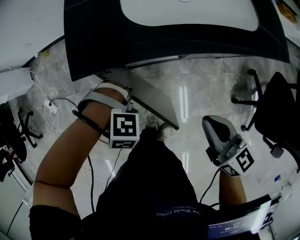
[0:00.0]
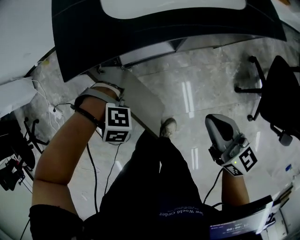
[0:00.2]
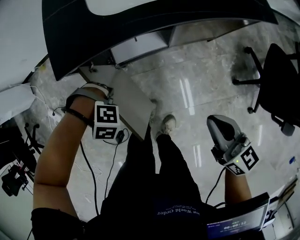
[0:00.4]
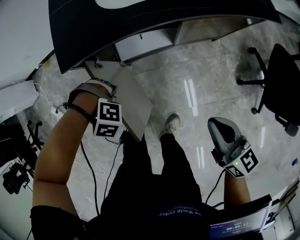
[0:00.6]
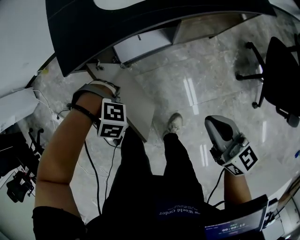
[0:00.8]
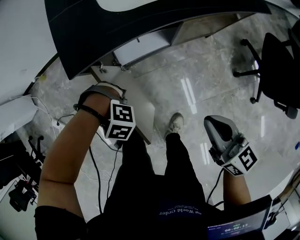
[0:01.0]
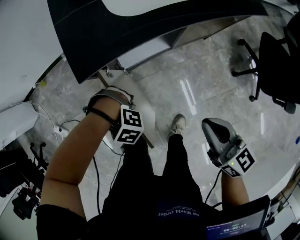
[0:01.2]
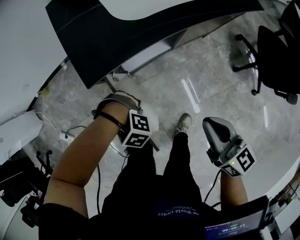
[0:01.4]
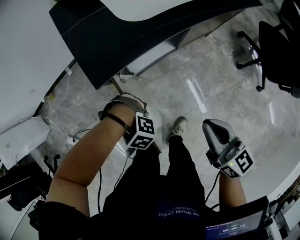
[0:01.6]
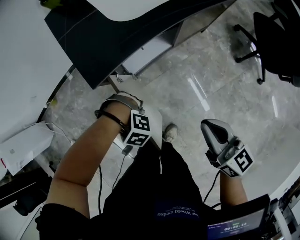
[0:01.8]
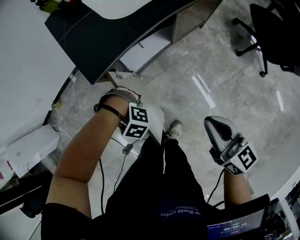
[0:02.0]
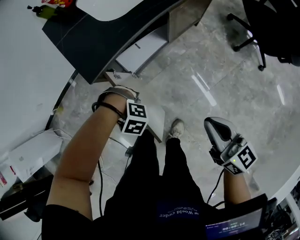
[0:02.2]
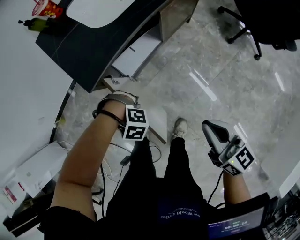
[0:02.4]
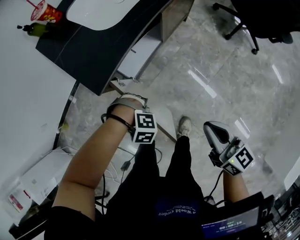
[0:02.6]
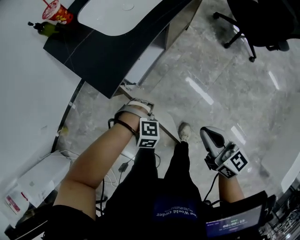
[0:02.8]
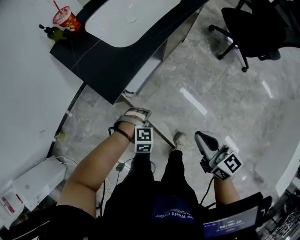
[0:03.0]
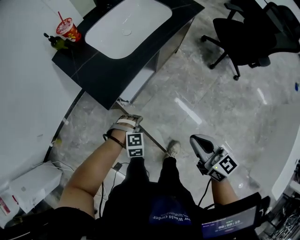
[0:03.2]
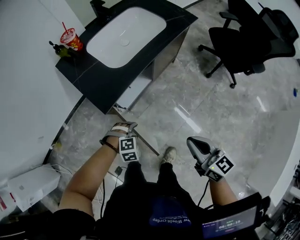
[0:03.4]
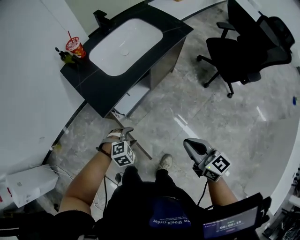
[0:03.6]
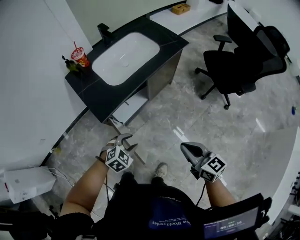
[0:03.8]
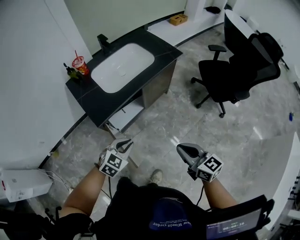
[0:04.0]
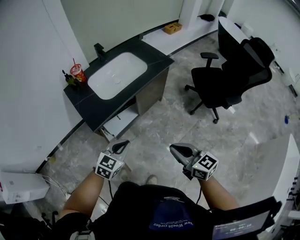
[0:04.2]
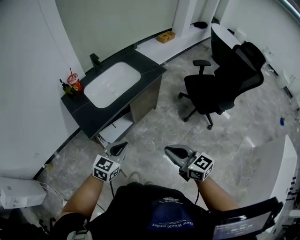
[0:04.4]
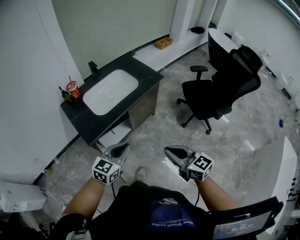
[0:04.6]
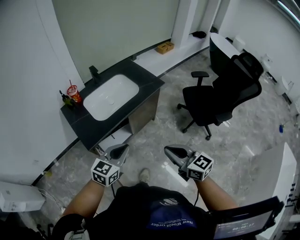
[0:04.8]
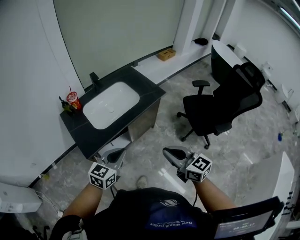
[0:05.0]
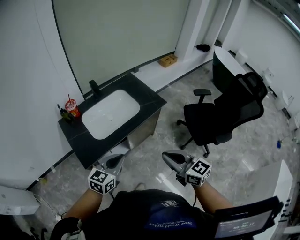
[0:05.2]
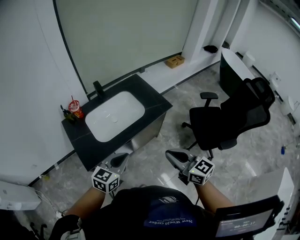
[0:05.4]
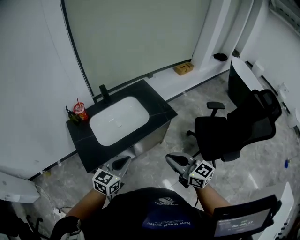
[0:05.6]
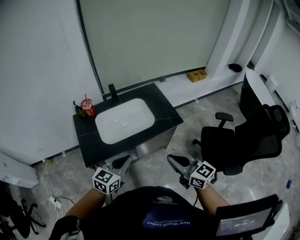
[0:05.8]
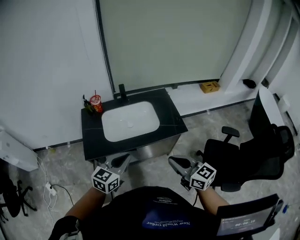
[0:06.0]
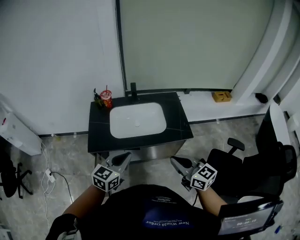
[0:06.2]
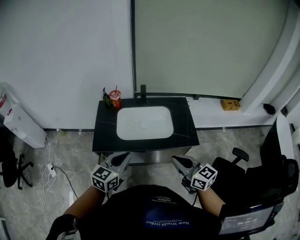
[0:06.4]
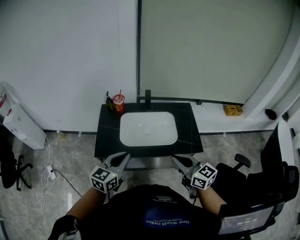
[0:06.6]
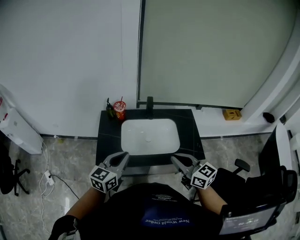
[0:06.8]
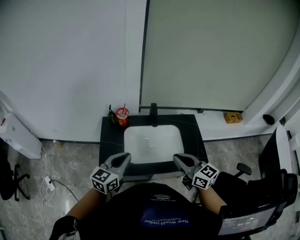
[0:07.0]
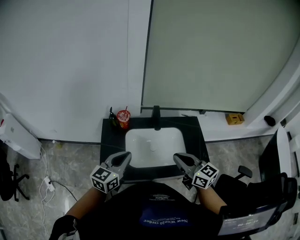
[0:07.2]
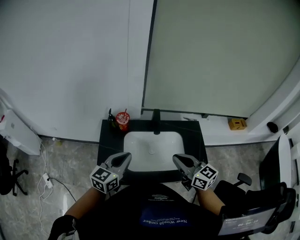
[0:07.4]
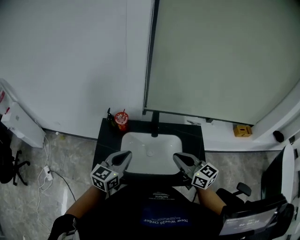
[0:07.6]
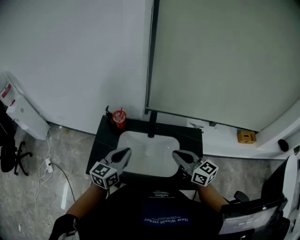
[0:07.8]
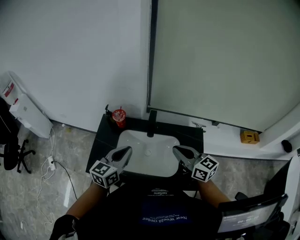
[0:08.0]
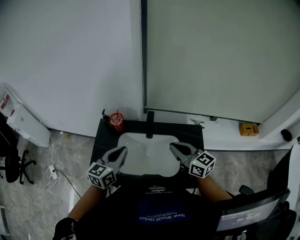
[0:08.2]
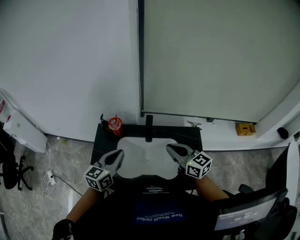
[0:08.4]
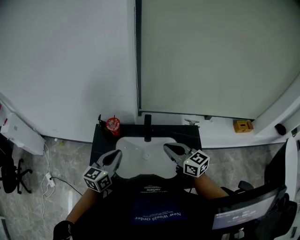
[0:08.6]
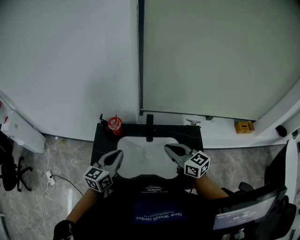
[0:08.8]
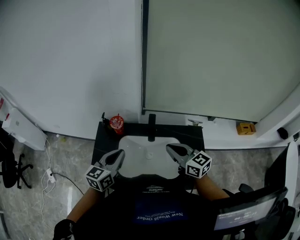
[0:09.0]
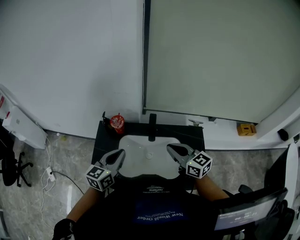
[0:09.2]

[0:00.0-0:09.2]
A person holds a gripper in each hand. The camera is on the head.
0:00.0 to 0:01.6: The right gripper ends up some 15 cm from where it was, and rotates roughly 20 degrees. Meanwhile the left gripper moves approximately 15 cm, and turns by some 40 degrees.
0:01.6 to 0:03.0: The left gripper turns by some 30 degrees. Meanwhile the right gripper ends up some 10 cm from where it was.
0:03.0 to 0:04.6: The right gripper is displaced upward by some 20 cm, and rotates some 20 degrees. Meanwhile the left gripper heads upward, covering roughly 40 cm, tilts its fingers approximately 60 degrees upward, and closes.
0:04.6 to 0:06.2: The left gripper moves approximately 20 cm, and rotates roughly 40 degrees. The right gripper ends up some 30 cm from where it was, and swivels about 30 degrees.
0:06.2 to 0:07.6: Both grippers move forward, approximately 30 cm.
0:07.6 to 0:09.2: The right gripper travels forward by about 5 cm.

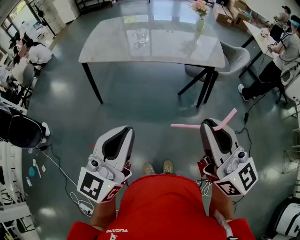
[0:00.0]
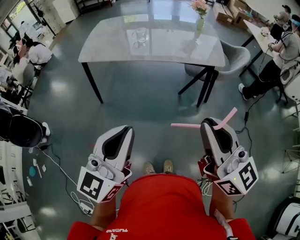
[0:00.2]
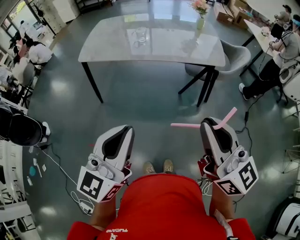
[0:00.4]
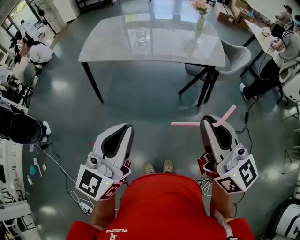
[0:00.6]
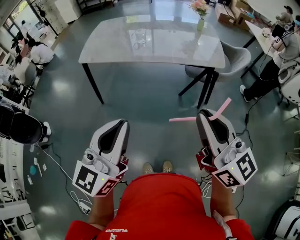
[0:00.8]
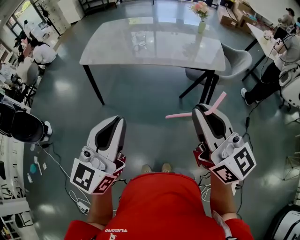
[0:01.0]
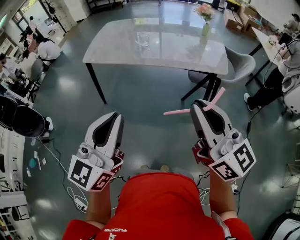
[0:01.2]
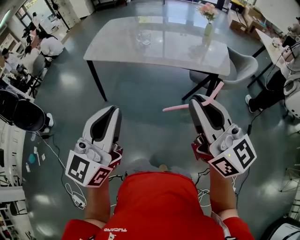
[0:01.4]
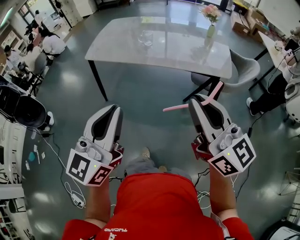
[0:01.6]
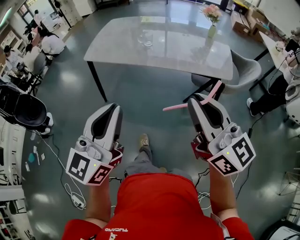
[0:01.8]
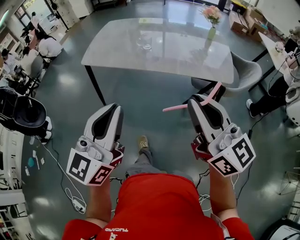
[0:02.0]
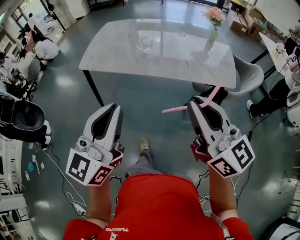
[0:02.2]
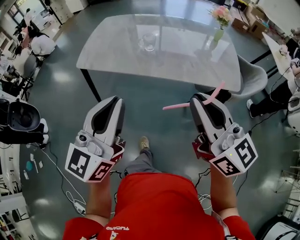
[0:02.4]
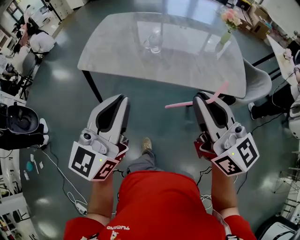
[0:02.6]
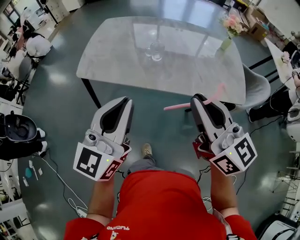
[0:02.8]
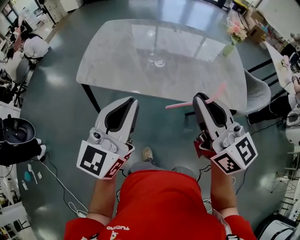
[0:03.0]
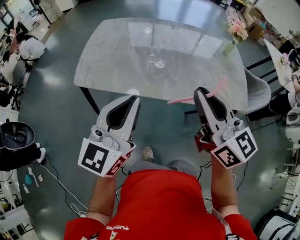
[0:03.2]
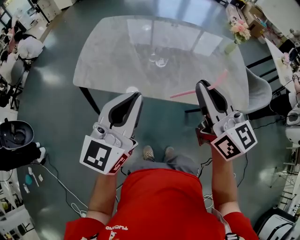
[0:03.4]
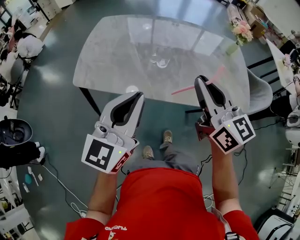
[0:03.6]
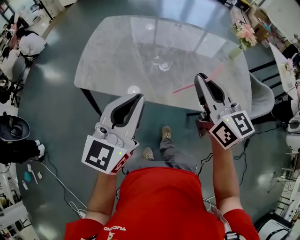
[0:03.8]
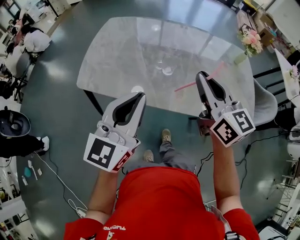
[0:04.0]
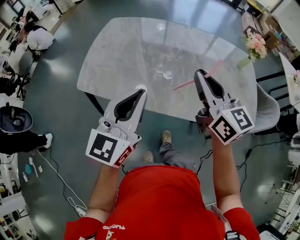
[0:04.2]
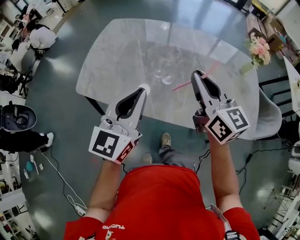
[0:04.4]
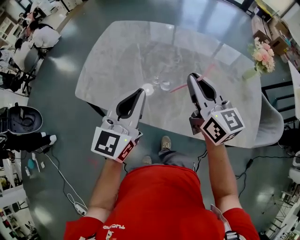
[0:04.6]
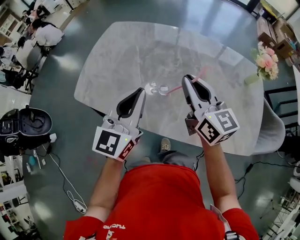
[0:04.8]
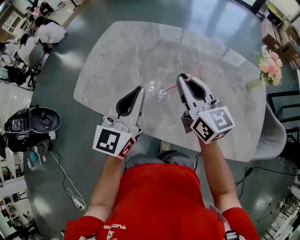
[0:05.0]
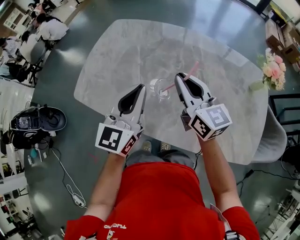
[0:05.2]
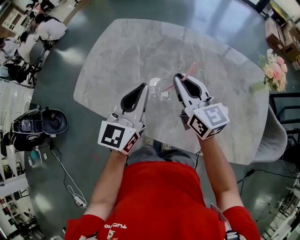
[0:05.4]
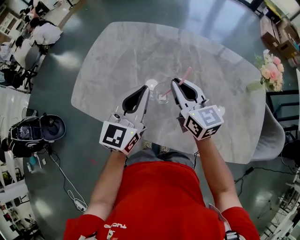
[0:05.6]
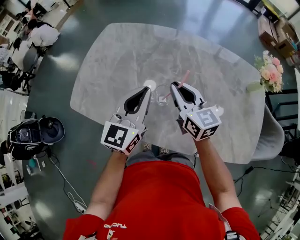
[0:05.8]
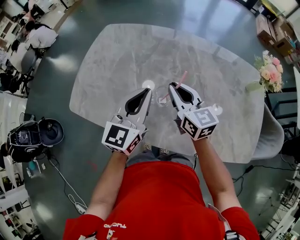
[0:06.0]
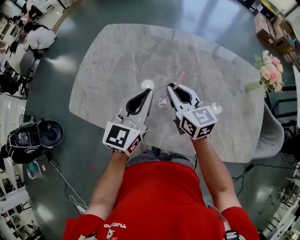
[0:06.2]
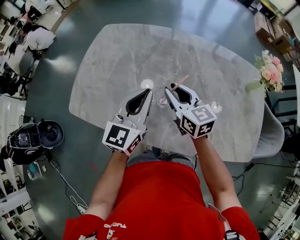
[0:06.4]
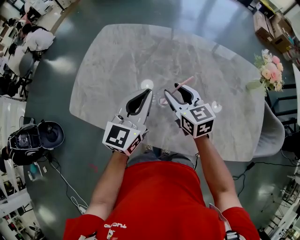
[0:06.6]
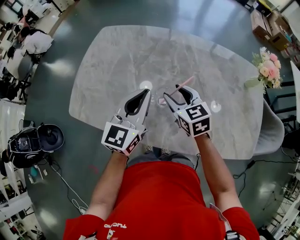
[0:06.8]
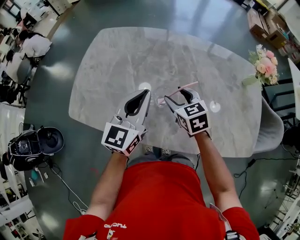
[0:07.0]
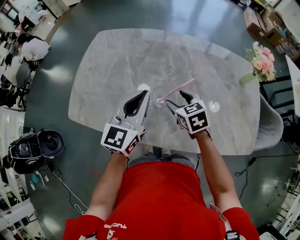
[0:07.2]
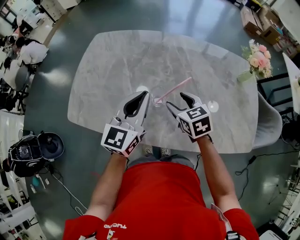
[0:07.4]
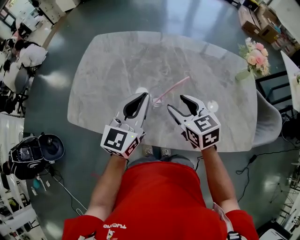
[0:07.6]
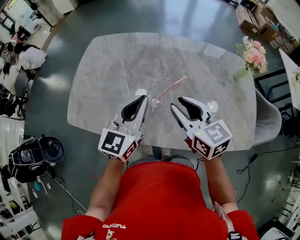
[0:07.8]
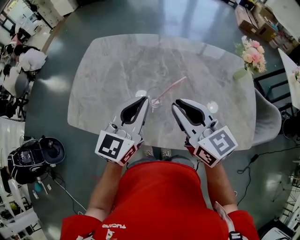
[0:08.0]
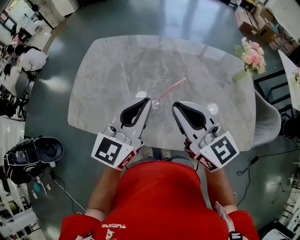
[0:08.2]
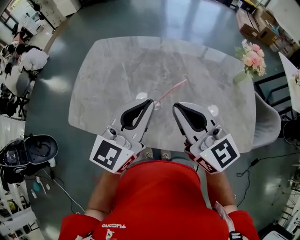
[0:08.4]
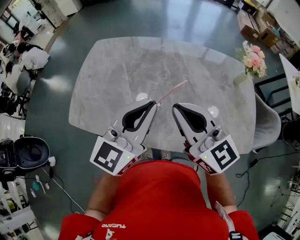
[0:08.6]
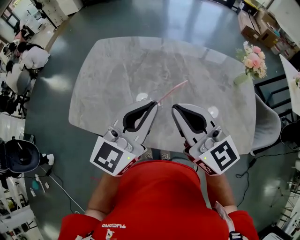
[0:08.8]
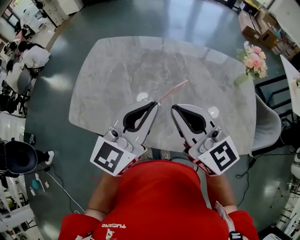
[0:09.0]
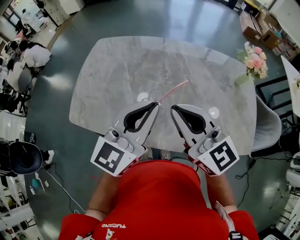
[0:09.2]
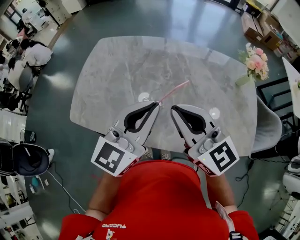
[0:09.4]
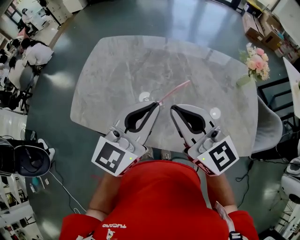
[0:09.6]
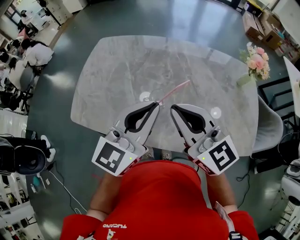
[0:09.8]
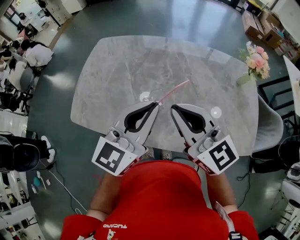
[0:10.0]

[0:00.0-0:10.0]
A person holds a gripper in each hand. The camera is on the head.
0:00.0 to 0:01.4: The right gripper is displaced forward by approximately 5 cm. The left gripper ends up some 5 cm from where it was.
0:01.4 to 0:02.8: Both grippers move forward, approximately 30 cm.
0:02.8 to 0:04.2: Both grippers move forward, some 20 cm.
0:04.2 to 0:05.8: The right gripper shifts approximately 25 cm forward and downward, while the left gripper heads forward, downward and to the right, covering some 20 cm.
0:05.8 to 0:07.2: The right gripper heads downward, covering about 10 cm, angles its fingers downward, by about 30 degrees, and opens.
0:07.2 to 0:08.6: The left gripper shifts some 10 cm upward and backward, while the right gripper shifts some 25 cm upward and backward, points its fingers approximately 40 degrees further upward, and closes up.
0:08.6 to 0:10.0: The two grippers keep their place.

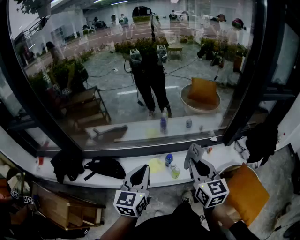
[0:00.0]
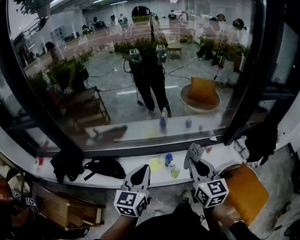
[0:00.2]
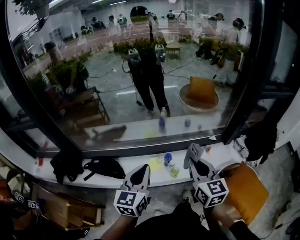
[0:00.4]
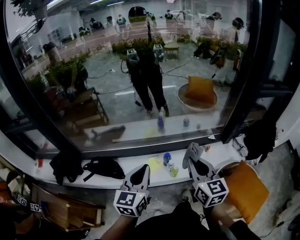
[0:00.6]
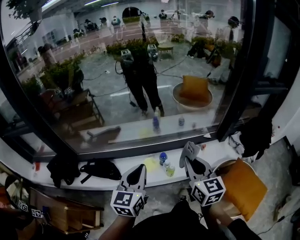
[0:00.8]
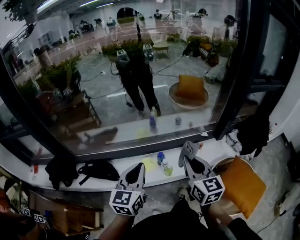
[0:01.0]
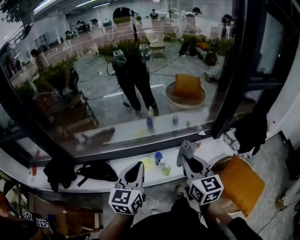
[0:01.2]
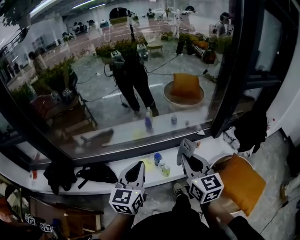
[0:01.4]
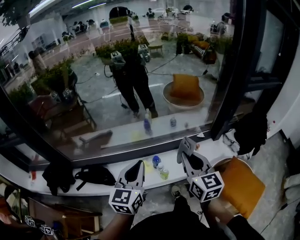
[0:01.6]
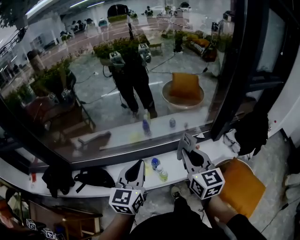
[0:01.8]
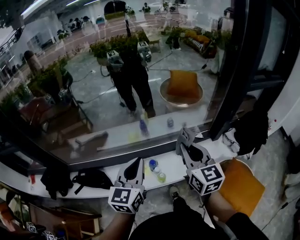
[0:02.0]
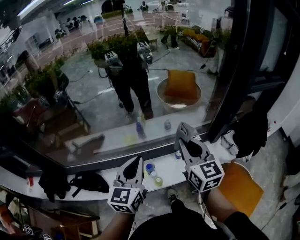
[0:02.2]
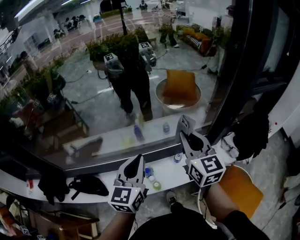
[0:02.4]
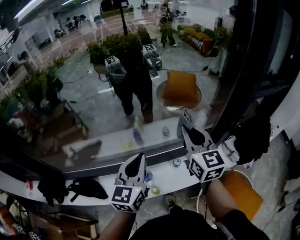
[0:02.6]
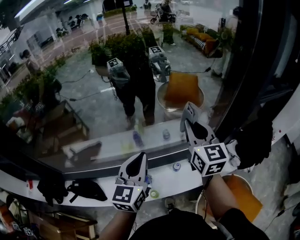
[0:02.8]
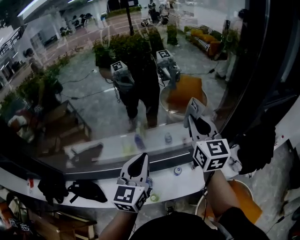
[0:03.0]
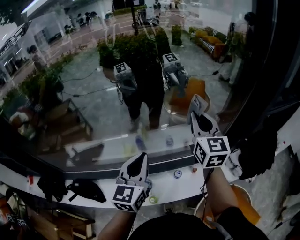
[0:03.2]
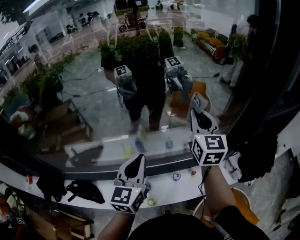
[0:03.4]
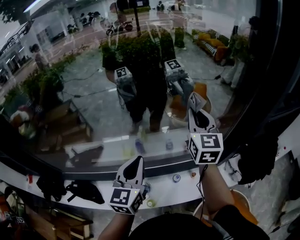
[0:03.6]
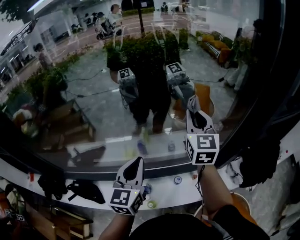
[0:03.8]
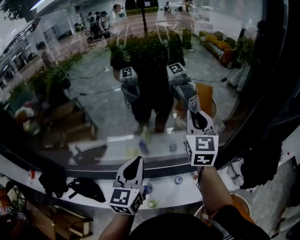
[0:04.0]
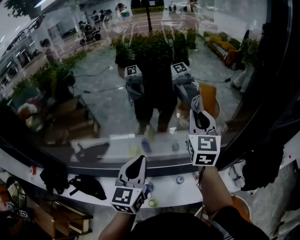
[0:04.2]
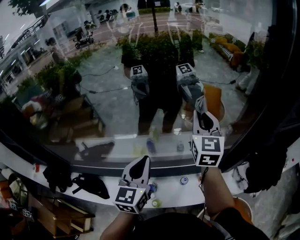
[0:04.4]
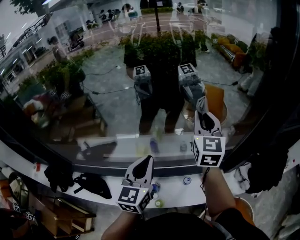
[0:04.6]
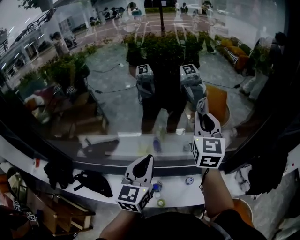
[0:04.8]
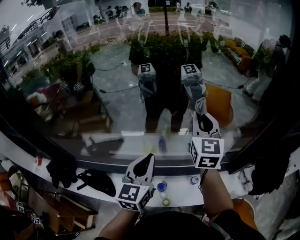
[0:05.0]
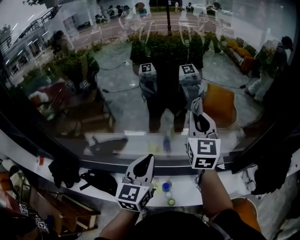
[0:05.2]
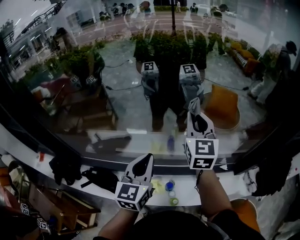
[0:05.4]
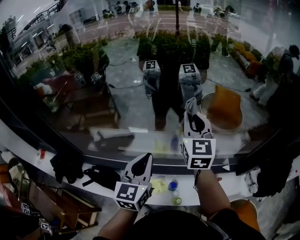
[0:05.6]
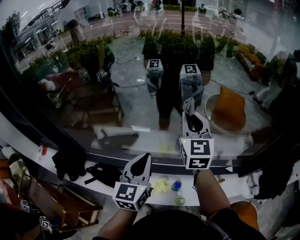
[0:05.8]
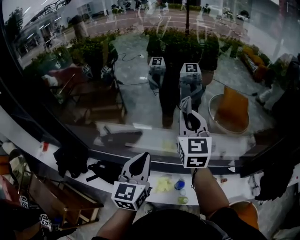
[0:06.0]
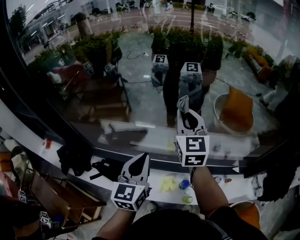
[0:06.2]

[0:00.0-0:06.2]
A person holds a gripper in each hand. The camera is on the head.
0:00.0 to 0:01.6: The right gripper travels to the right by approximately 5 cm, while the left gripper goes roughly 10 cm to the right and forward.
0:01.6 to 0:03.2: The right gripper travels forward by roughly 40 cm. The left gripper is displaced forward and to the right by some 30 cm.
0:03.2 to 0:04.6: The right gripper heads to the left, covering about 5 cm.
0:04.6 to 0:06.2: The grippers both shift to the left by roughly 35 cm.
